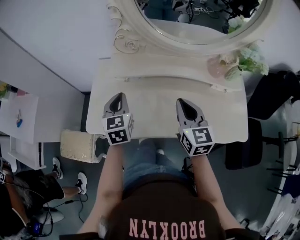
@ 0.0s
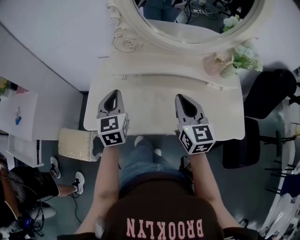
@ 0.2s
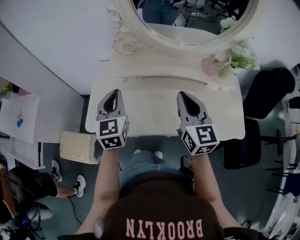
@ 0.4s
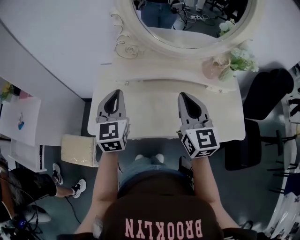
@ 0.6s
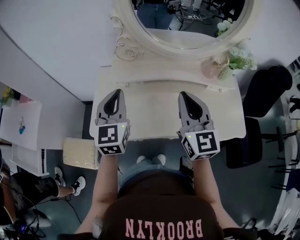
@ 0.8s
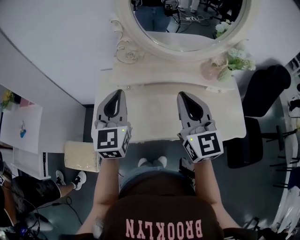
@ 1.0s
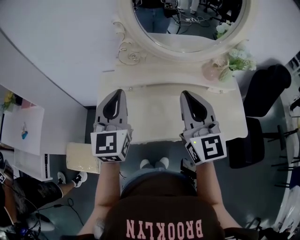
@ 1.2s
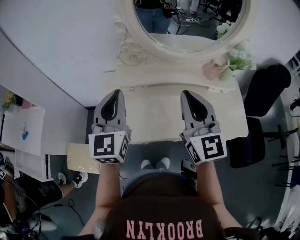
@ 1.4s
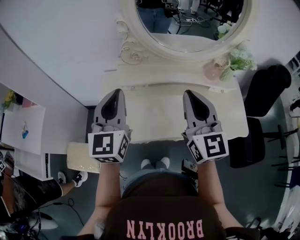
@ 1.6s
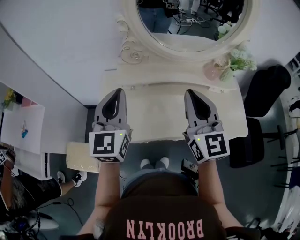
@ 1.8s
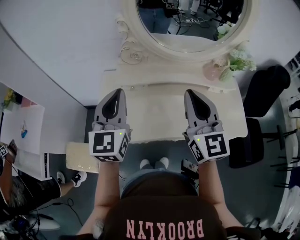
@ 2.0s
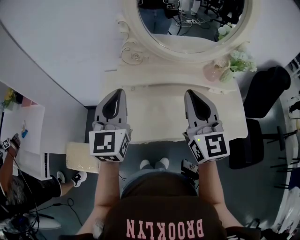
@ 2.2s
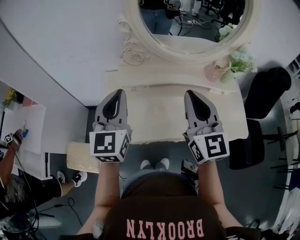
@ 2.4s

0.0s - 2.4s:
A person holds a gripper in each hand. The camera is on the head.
0.0s - 1.2s: Both grippers move upward, roughly 20 cm. The right gripper rotates approximately 20 degrees, while the left gripper swivels some 30 degrees.
1.2s - 2.4s: The grippers move only a little.

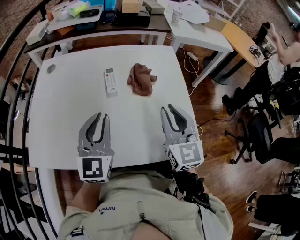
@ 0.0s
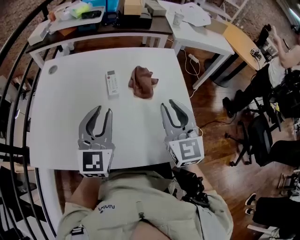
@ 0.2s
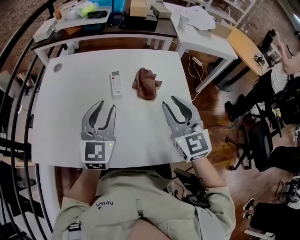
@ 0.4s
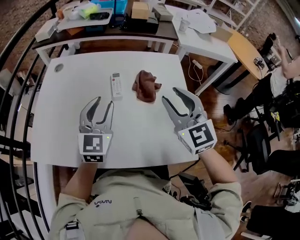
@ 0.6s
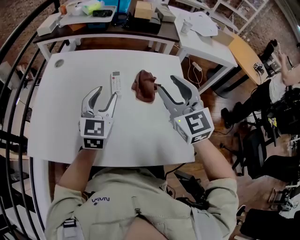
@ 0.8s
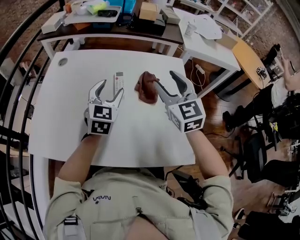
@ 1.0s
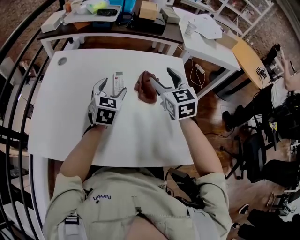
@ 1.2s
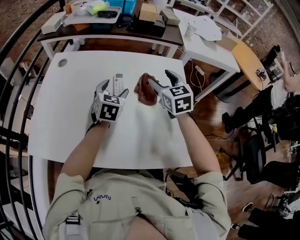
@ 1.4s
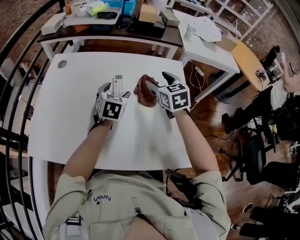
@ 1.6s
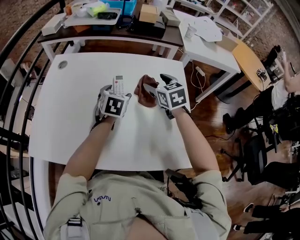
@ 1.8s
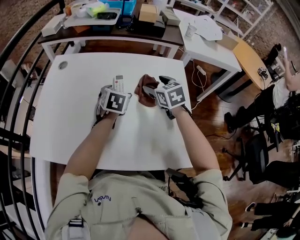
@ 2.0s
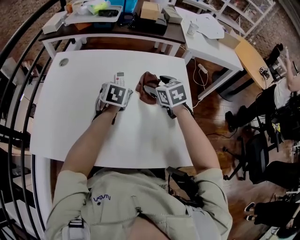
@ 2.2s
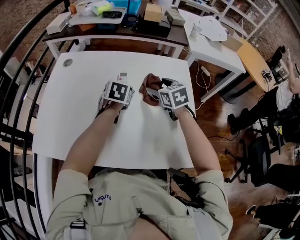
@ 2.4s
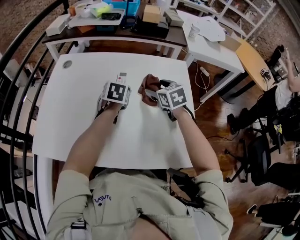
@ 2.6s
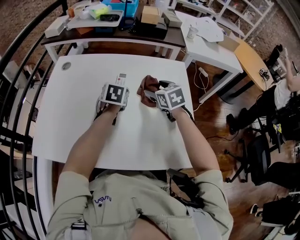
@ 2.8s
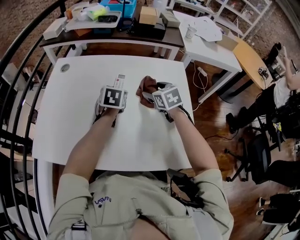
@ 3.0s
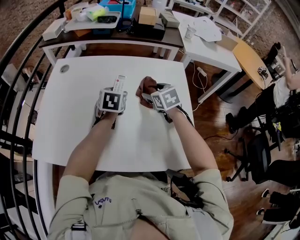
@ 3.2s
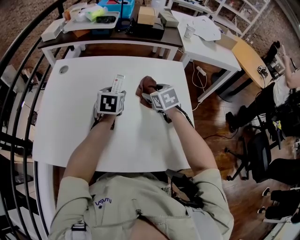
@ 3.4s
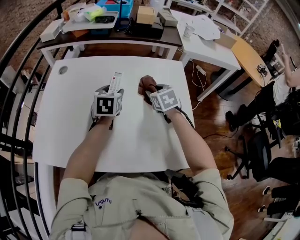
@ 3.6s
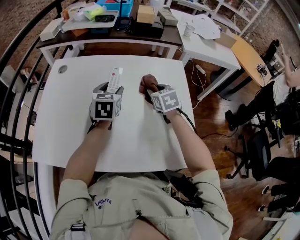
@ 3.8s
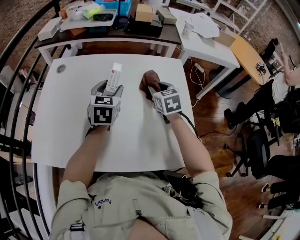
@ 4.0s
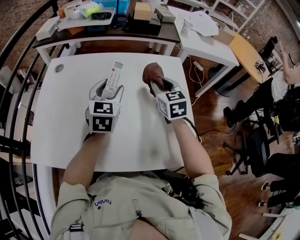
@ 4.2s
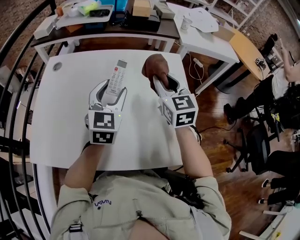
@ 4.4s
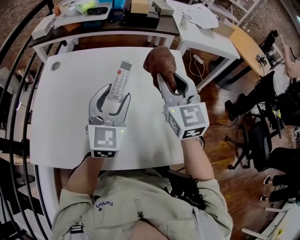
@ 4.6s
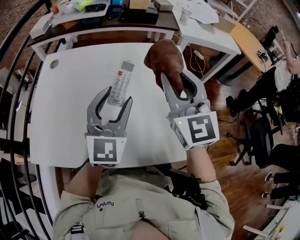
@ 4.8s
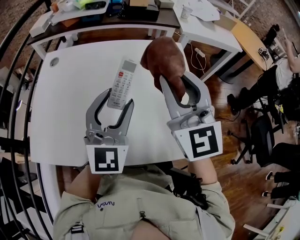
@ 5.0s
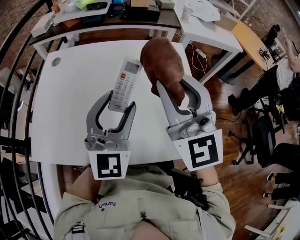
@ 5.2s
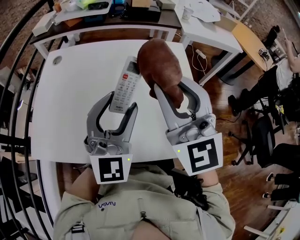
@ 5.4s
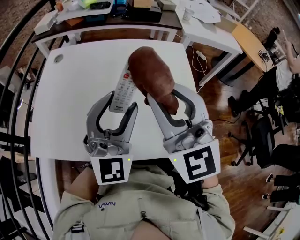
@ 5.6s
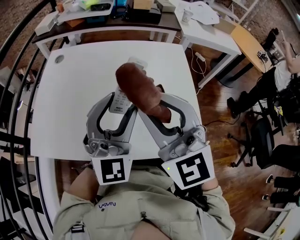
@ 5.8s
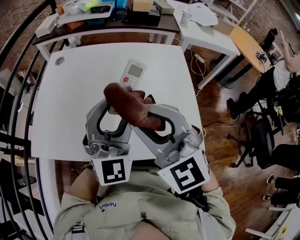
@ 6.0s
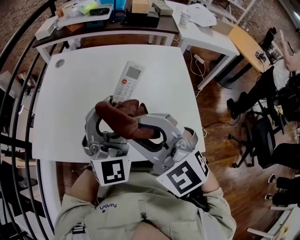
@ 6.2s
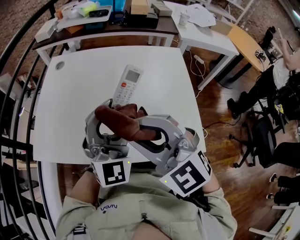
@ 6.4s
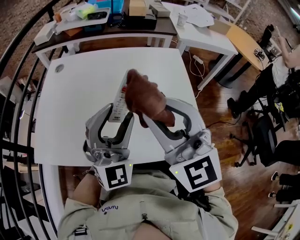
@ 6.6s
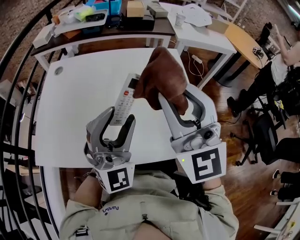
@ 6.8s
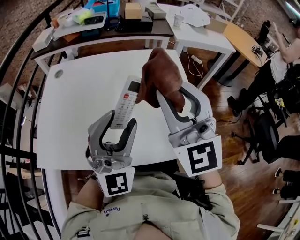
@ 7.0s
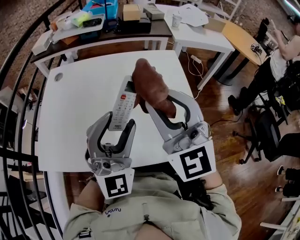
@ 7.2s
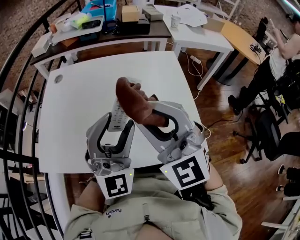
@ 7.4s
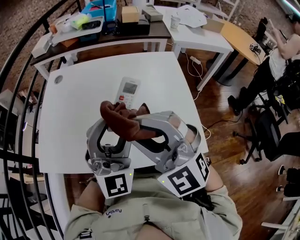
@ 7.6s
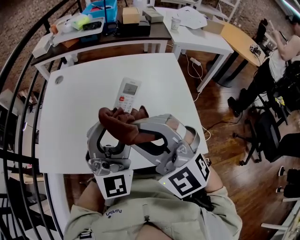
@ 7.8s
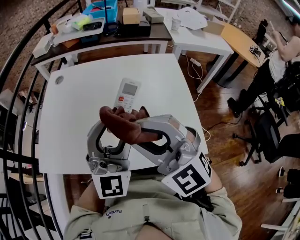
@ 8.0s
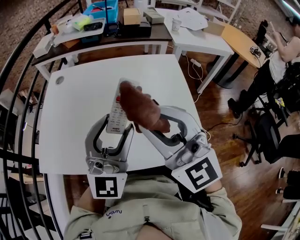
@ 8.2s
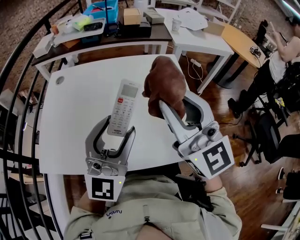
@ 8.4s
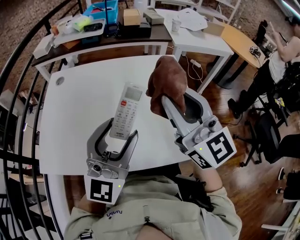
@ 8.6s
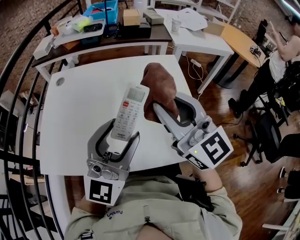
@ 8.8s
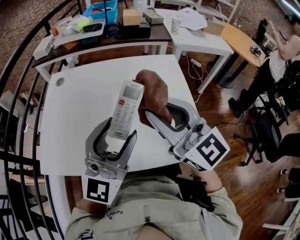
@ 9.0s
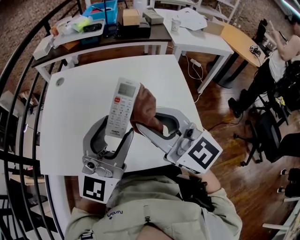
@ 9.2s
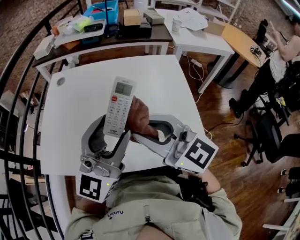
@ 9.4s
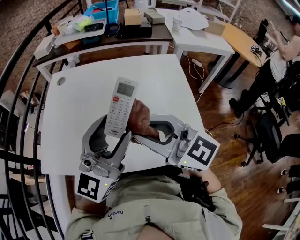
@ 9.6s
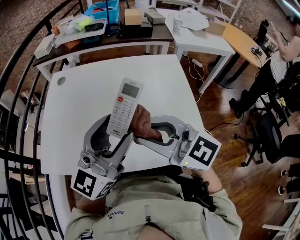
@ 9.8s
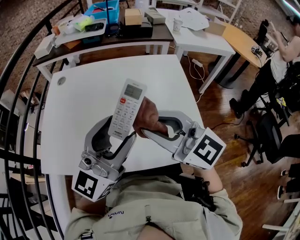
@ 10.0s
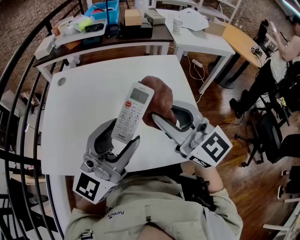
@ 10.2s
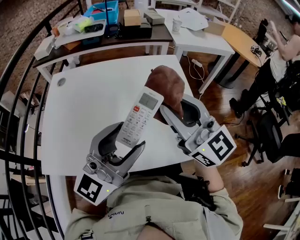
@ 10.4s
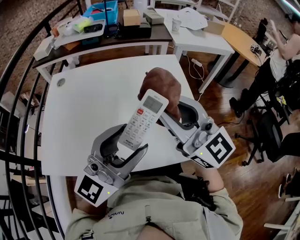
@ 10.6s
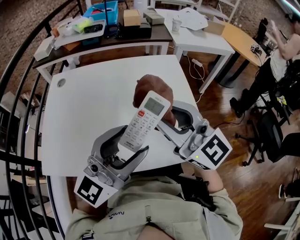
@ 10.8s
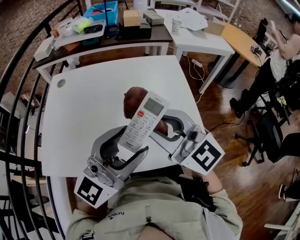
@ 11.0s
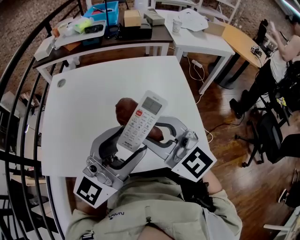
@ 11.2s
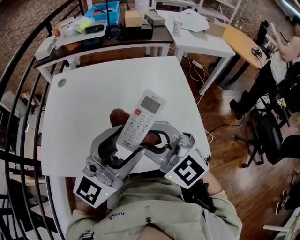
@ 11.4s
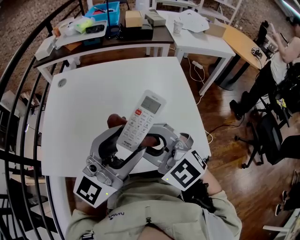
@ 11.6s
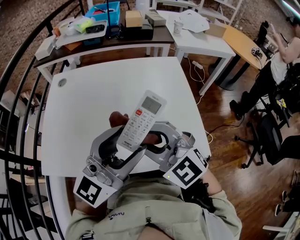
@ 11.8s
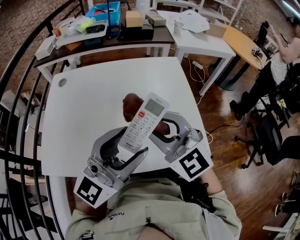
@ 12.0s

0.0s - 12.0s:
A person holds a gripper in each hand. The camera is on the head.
0.0s - 1.6s: The right gripper moves forward, roughly 20 cm, rotates about 30 degrees, and opens up. The left gripper goes some 20 cm forward and downward, swivels about 30 degrees, and opens.
1.6s - 3.0s: The right gripper moves downward, roughly 5 cm.
3.0s - 4.4s: The left gripper travels upward and backward by about 15 cm, and swivels roughly 30 degrees. Meanwhile the right gripper is displaced upward by approximately 15 cm, swivels approximately 30 degrees, and closes its fingers.
4.4s - 6.0s: The right gripper shifts roughly 25 cm backward and to the left, and swivels some 40 degrees, while the left gripper travels backward and upward by about 15 cm, and turns by about 30 degrees.
6.0s - 7.6s: The right gripper travels to the right and back again, roughly 10 cm each way.
7.6s - 9.0s: The right gripper moves to the right, roughly 5 cm, and rotates some 40 degrees; the left gripper rotates about 30 degrees.
10.4s - 12.0s: The right gripper travels downward and to the left by approximately 10 cm, and rotates about 30 degrees.

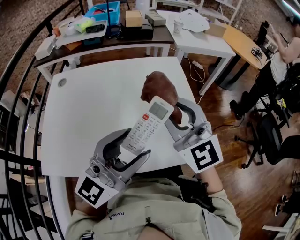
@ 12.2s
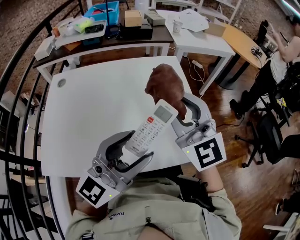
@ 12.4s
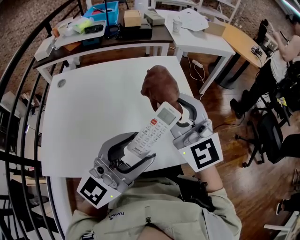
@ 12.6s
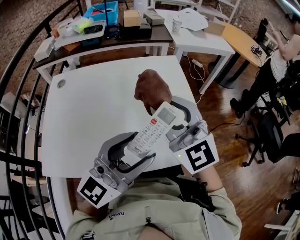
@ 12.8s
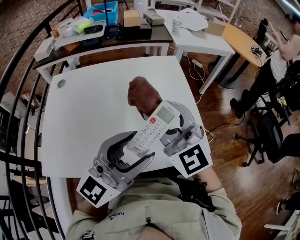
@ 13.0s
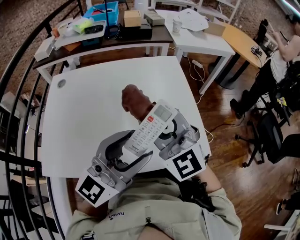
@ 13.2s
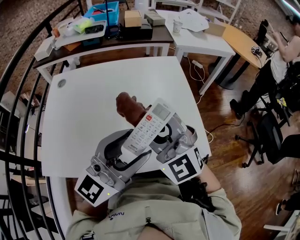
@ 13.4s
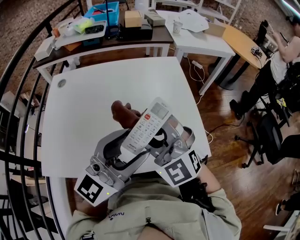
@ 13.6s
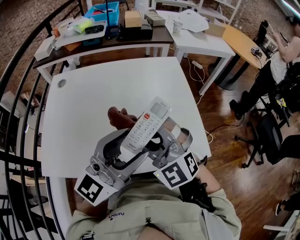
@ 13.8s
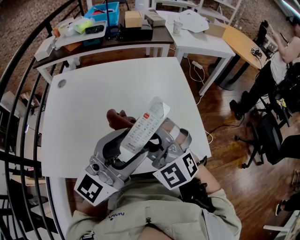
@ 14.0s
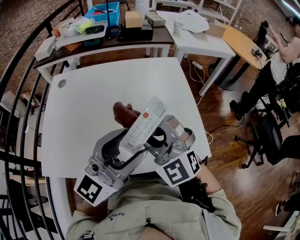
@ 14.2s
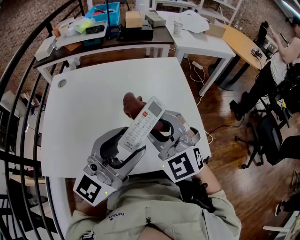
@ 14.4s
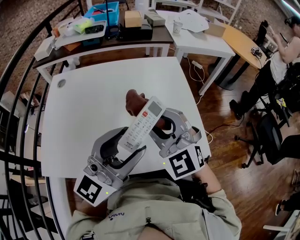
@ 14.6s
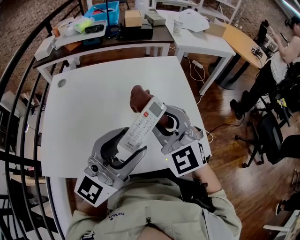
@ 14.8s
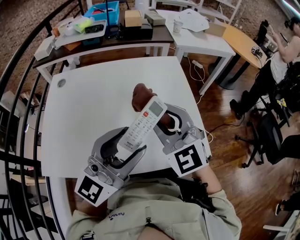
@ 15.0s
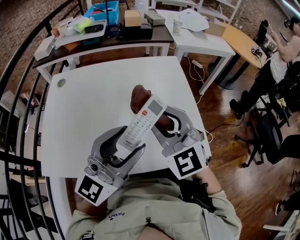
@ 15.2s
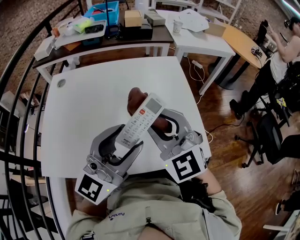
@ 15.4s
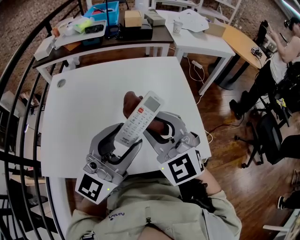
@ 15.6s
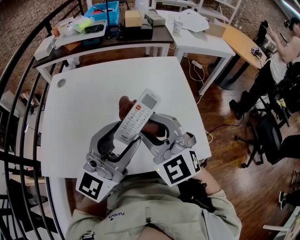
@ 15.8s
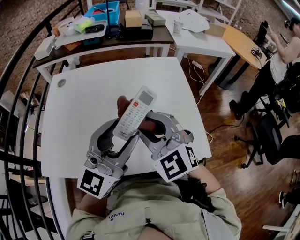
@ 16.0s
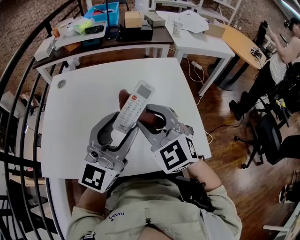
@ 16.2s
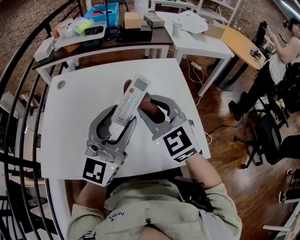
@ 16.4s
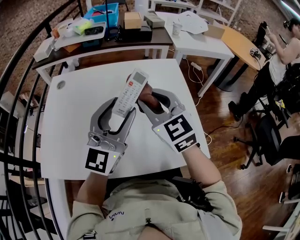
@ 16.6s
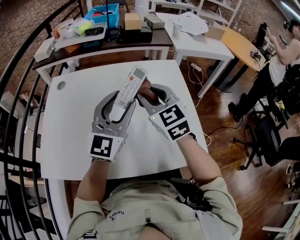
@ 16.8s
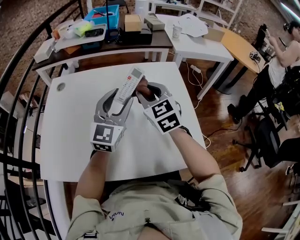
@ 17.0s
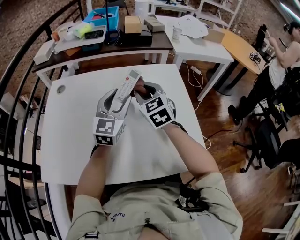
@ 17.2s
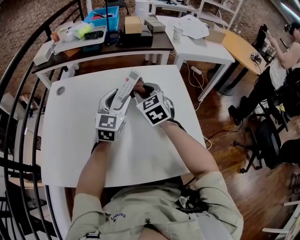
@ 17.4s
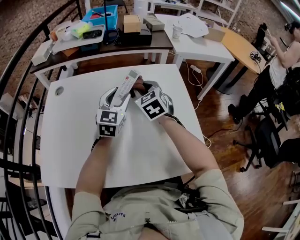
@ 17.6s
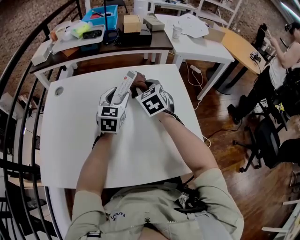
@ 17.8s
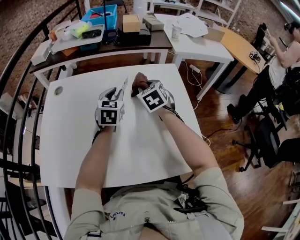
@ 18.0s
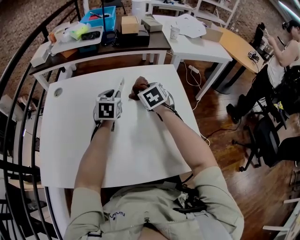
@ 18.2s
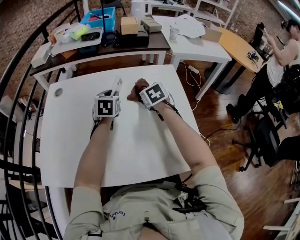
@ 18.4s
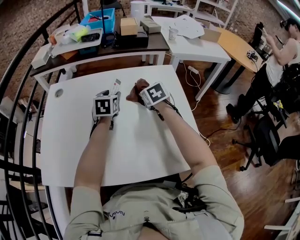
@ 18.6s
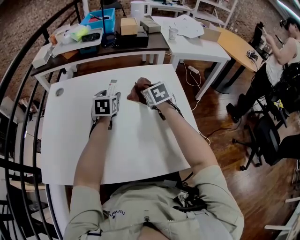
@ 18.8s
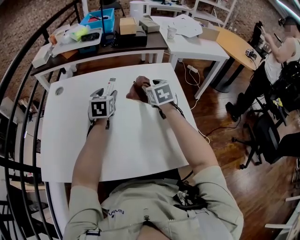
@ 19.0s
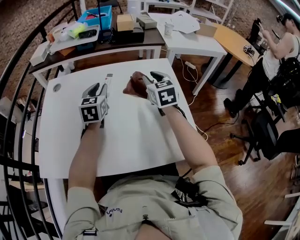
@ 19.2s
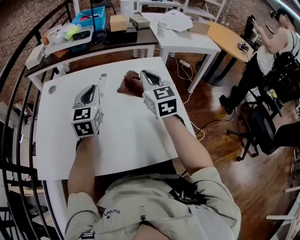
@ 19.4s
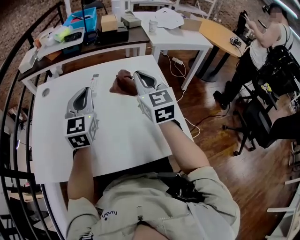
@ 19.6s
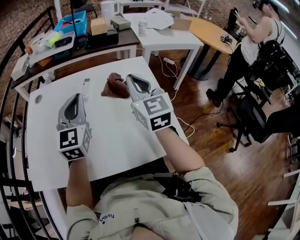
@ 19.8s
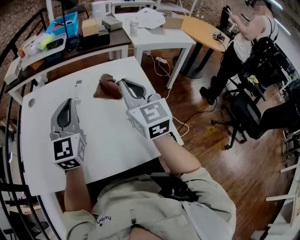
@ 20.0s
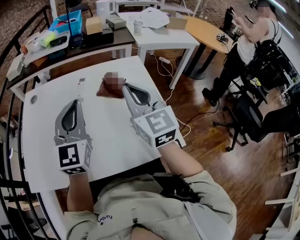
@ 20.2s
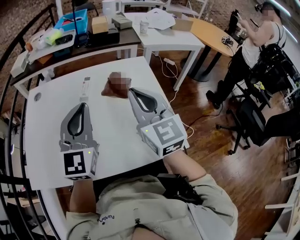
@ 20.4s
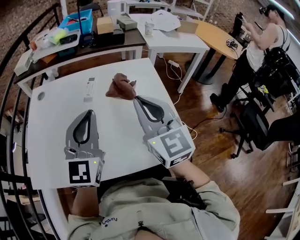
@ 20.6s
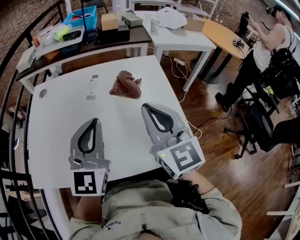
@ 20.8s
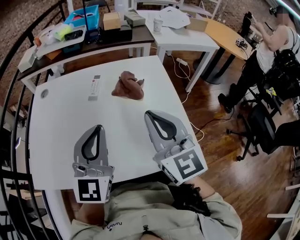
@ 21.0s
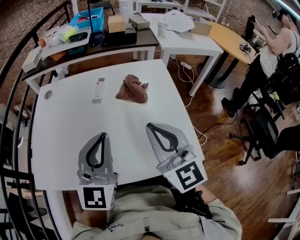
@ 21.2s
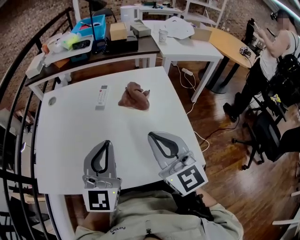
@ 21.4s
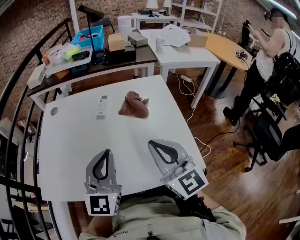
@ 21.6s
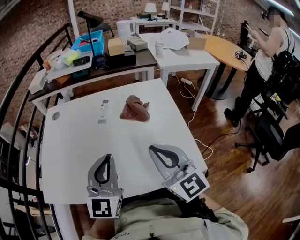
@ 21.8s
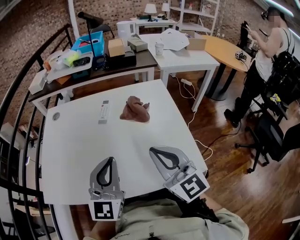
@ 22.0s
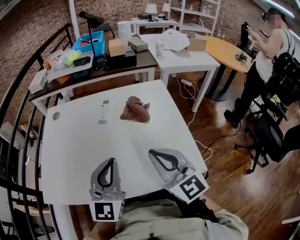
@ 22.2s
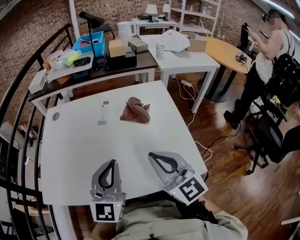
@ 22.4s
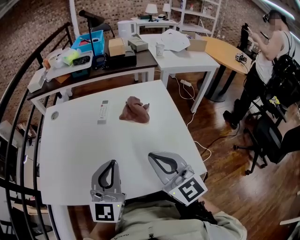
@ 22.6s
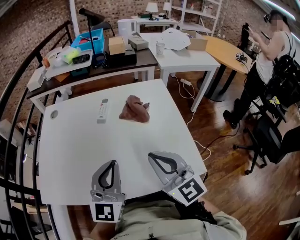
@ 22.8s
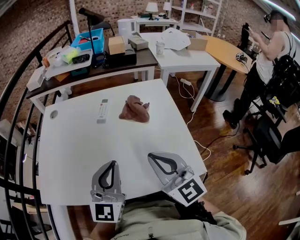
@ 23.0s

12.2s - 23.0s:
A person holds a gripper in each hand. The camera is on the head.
12.2s - 13.8s: The right gripper travels to the left, downward and backward by roughly 10 cm, and rotates some 30 degrees.
13.8s - 15.2s: The right gripper is displaced to the right by some 5 cm.
15.2s - 16.8s: Both grippers travel together forward, roughly 15 cm. The left gripper rotates some 20 degrees.
16.8s - 18.4s: The left gripper travels forward and downward by about 25 cm, and tips its fingers downward by approximately 40 degrees. Meanwhile the right gripper shifts some 20 cm downward and forward, and points its fingers roughly 30 degrees further downward.
18.4s - 20.0s: The right gripper travels upward and backward by about 25 cm, tilts its fingers about 40 degrees upward, and closes its fingers. The left gripper travels backward and upward by some 25 cm, tips its fingers upward by about 30 degrees, and opens, then closes again.
20.0s - 21.4s: Both grippers travel together backward, some 10 cm.
21.4s - 23.0s: The grippers stay close to where they were, moving slightly.
